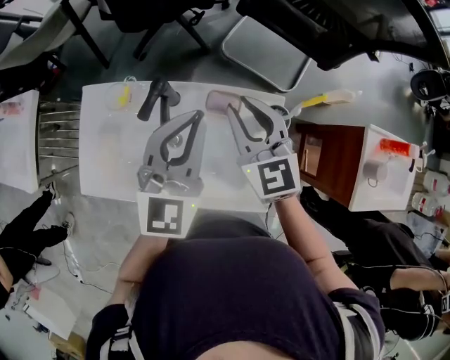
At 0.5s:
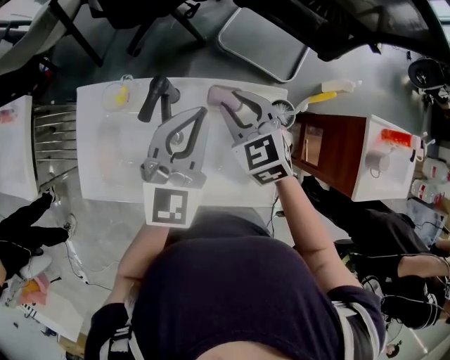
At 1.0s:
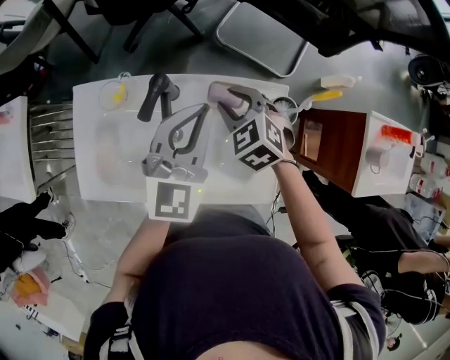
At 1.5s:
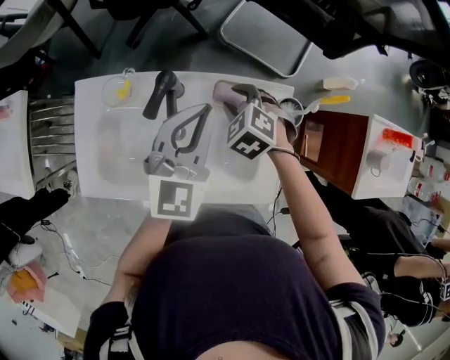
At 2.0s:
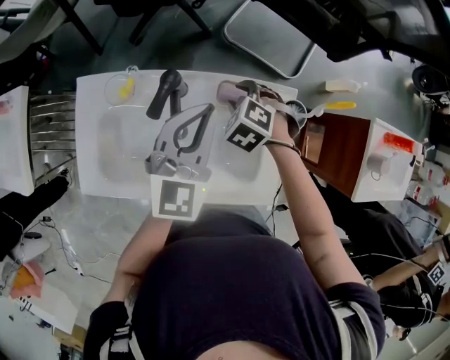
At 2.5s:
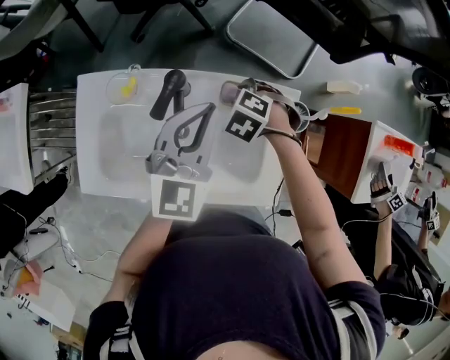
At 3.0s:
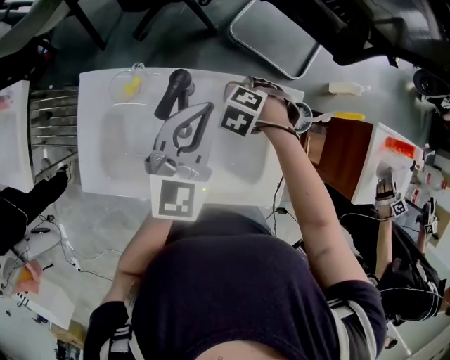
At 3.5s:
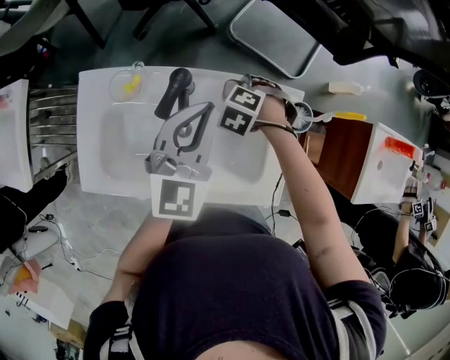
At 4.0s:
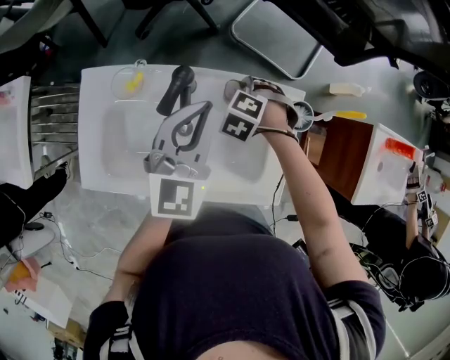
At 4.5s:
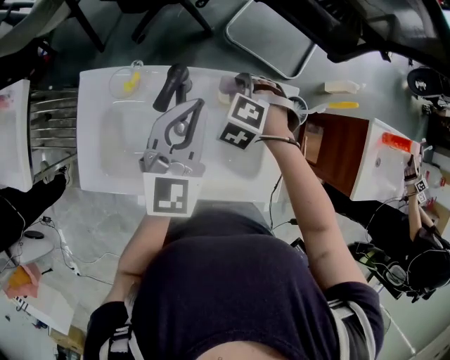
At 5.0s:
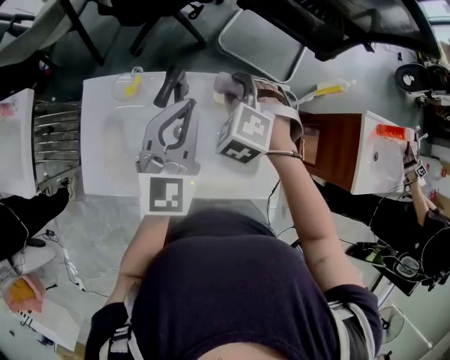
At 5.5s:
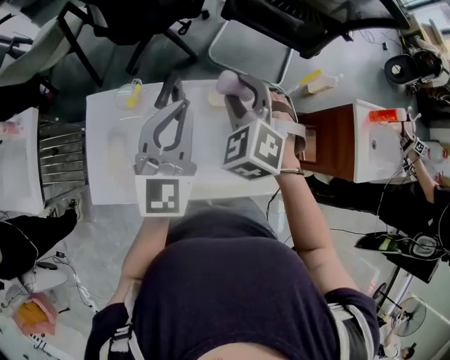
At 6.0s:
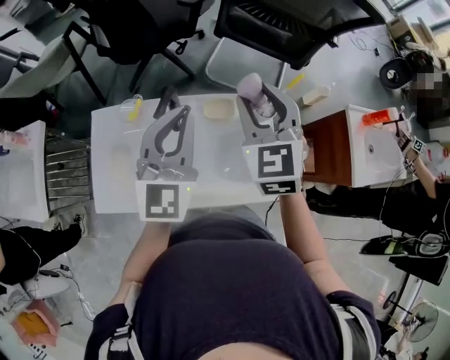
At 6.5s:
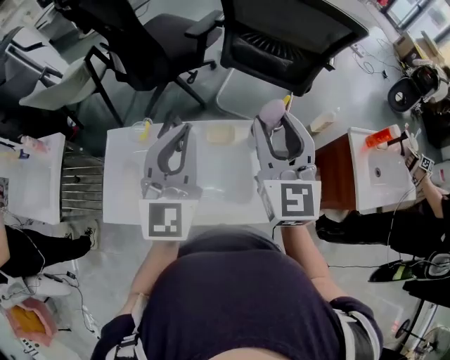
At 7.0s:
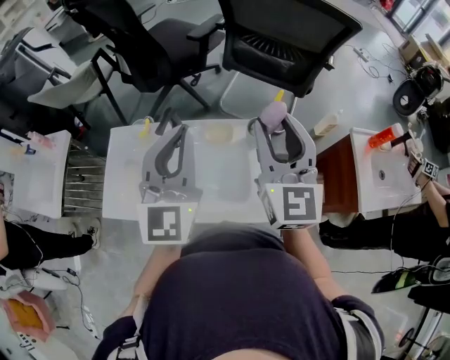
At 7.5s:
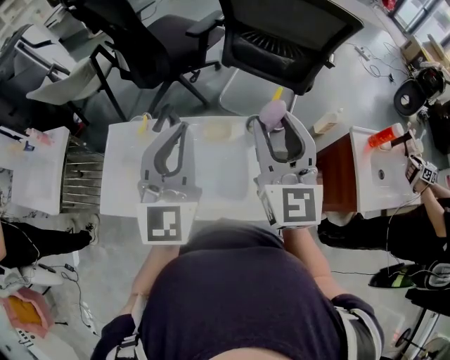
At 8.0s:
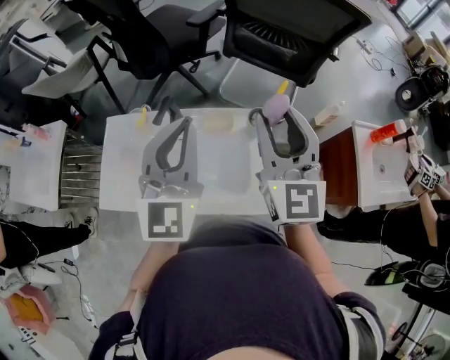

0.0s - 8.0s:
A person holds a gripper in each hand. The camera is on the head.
0.0s - 2.0s: The left gripper goes about 5 cm downward. The right gripper shifts approximately 20 cm downward, tips its fingers downward by about 50 degrees, and opens its fingers.
2.0s - 4.0s: The grippers make only small movements.
4.0s - 6.0s: The right gripper goes about 30 cm upward, and tilts its fingers about 60 degrees upward. The left gripper heads upward, covering approximately 10 cm.
6.0s - 8.0s: The left gripper is displaced upward and to the right by approximately 10 cm; the right gripper shifts approximately 10 cm to the right, upward and backward, and rotates some 30 degrees.

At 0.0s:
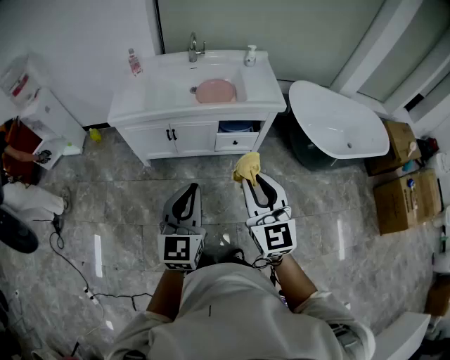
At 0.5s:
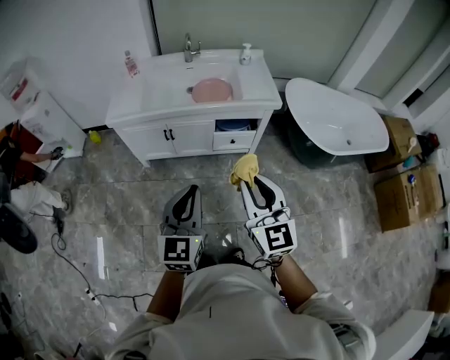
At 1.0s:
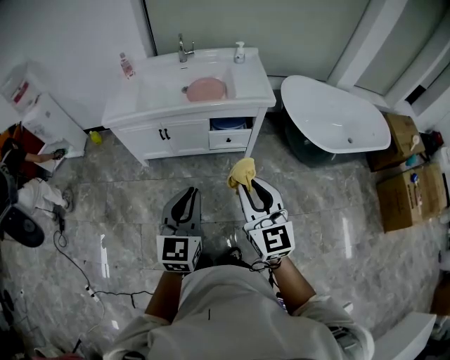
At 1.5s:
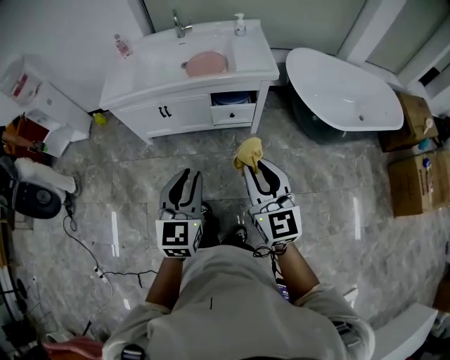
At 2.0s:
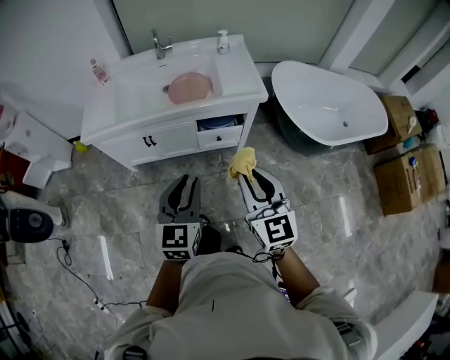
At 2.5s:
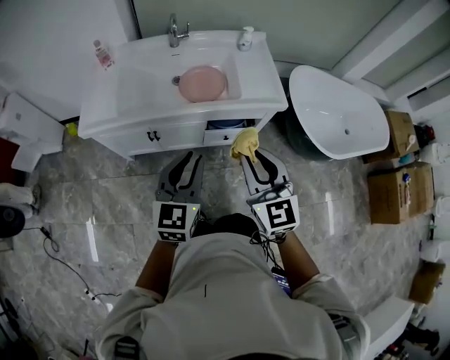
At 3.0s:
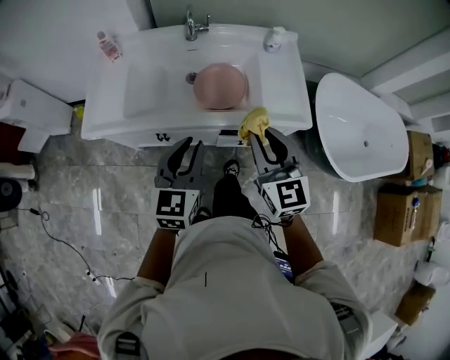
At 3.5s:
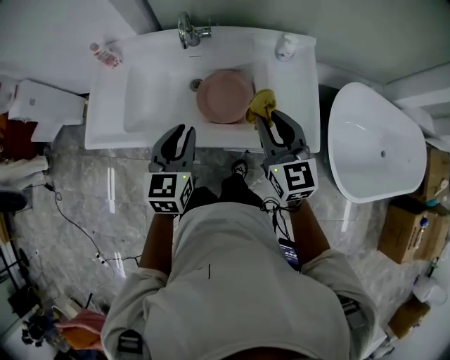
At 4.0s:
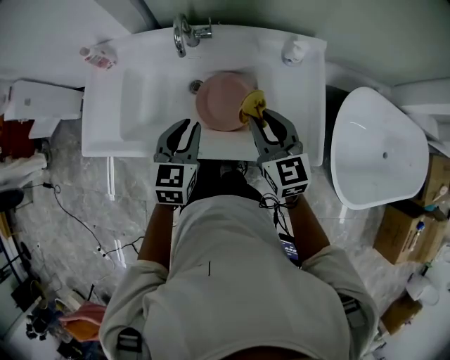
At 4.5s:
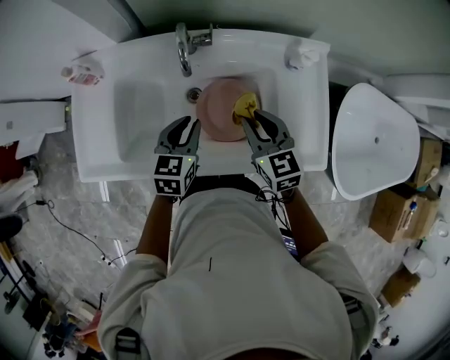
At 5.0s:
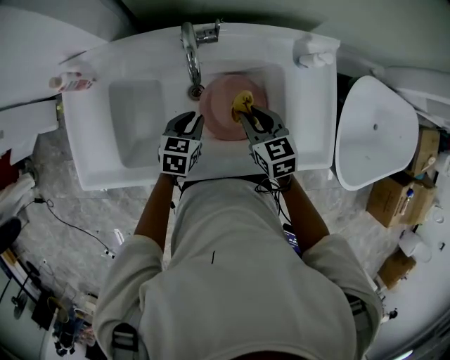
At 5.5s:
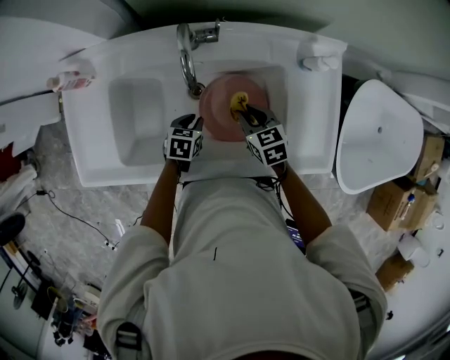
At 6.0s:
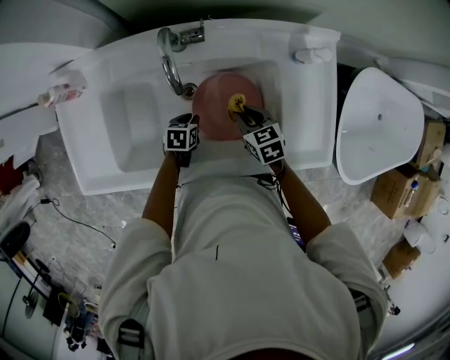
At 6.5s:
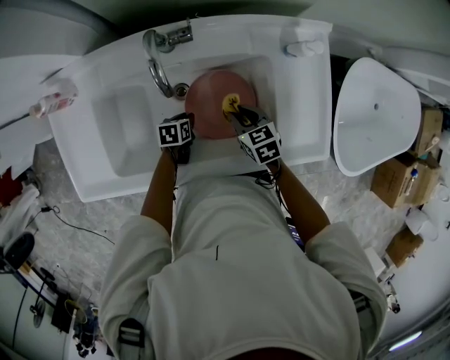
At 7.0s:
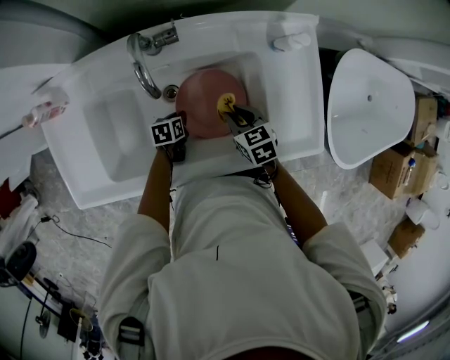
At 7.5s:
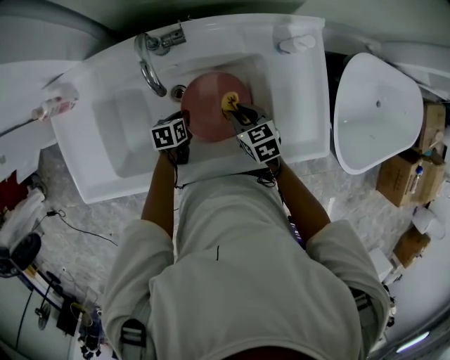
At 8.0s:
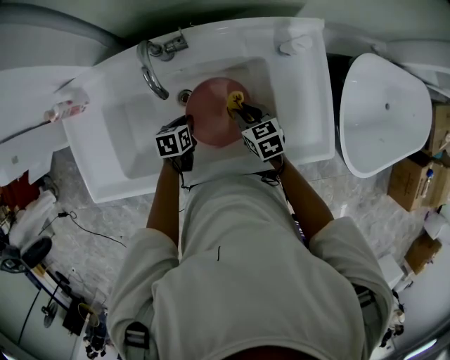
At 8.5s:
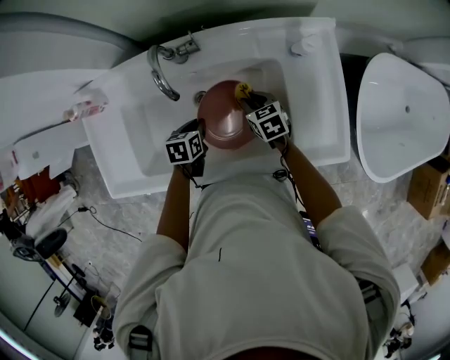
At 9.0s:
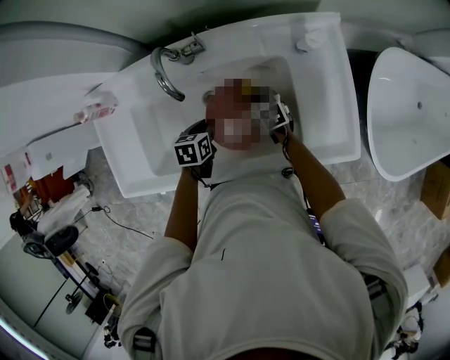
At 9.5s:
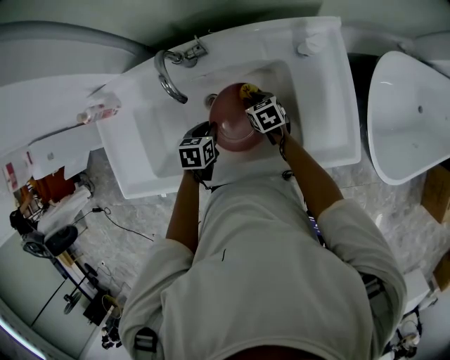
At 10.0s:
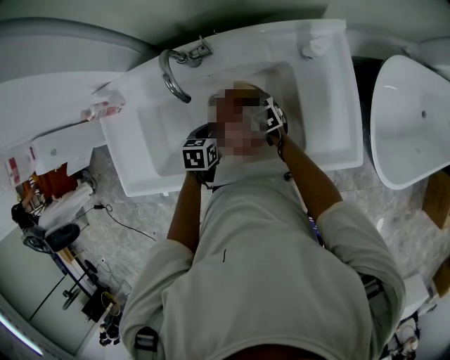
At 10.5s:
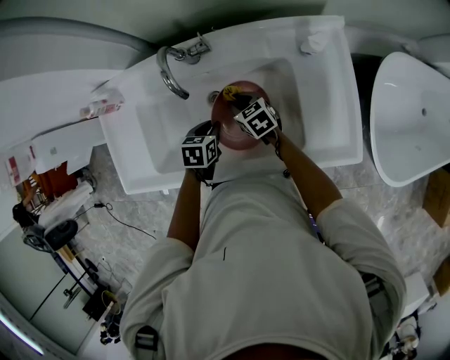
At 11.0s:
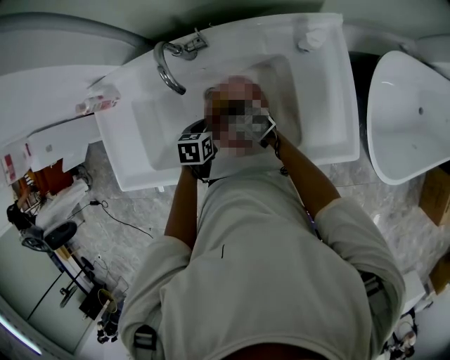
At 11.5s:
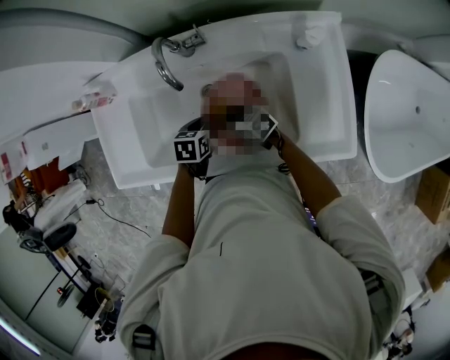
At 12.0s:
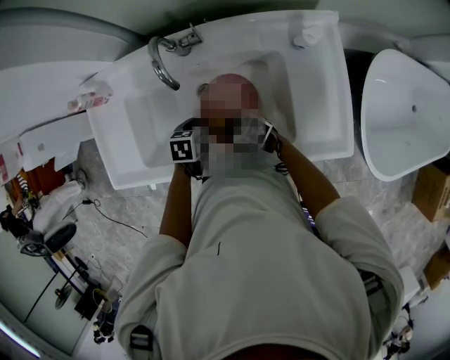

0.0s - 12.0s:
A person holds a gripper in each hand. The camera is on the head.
0.0s - 2.0s: The right gripper travels to the right, forward and downward by roughly 15 cm. The left gripper goes some 15 cm forward, to the right and downward.
2.0s - 4.0s: The pair of grippers is taken forward, approximately 50 cm. The right gripper changes its angle by roughly 20 degrees.
4.0s - 6.0s: The grippers both shift downward by about 30 cm. The left gripper tilts its fingers about 30 degrees downward; the right gripper angles its fingers downward, by approximately 30 degrees.
6.0s - 8.0s: The left gripper shifts roughly 5 cm upward.
8.0s - 10.0s: The left gripper shifts roughly 5 cm upward, while the right gripper goes some 10 cm forward, to the left and downward.
10.0s - 12.0s: The right gripper moves some 15 cm, and changes its angle by approximately 40 degrees.

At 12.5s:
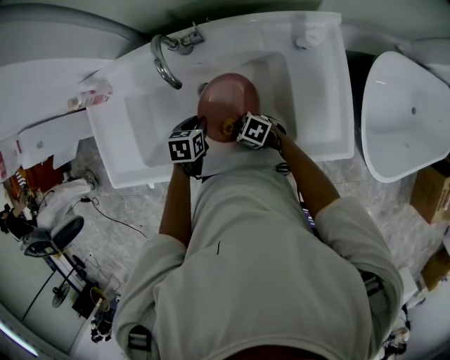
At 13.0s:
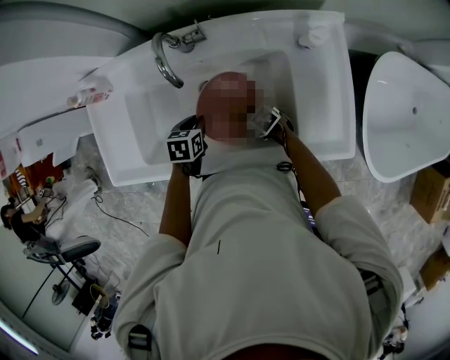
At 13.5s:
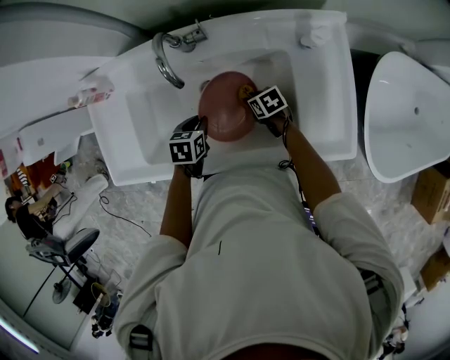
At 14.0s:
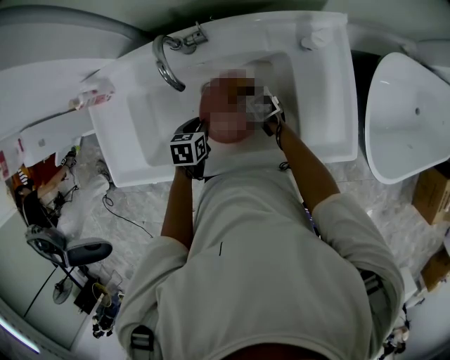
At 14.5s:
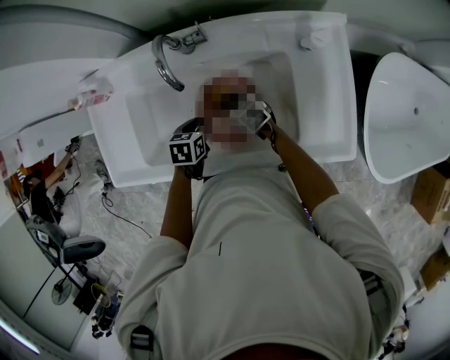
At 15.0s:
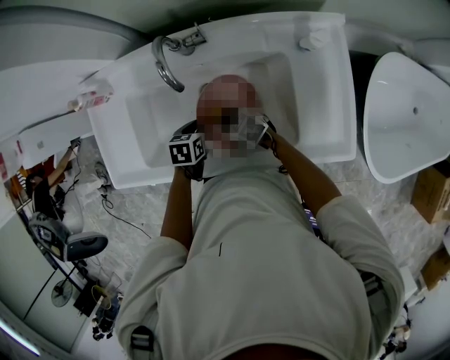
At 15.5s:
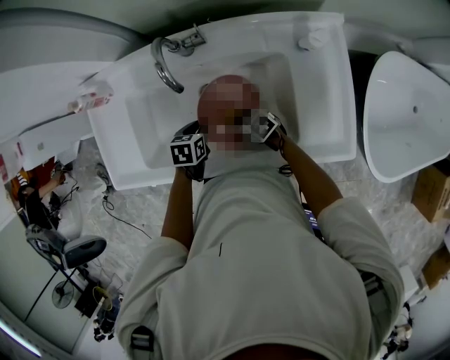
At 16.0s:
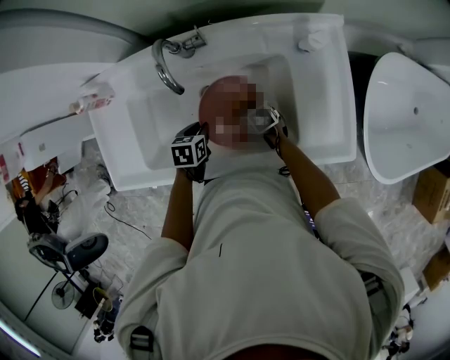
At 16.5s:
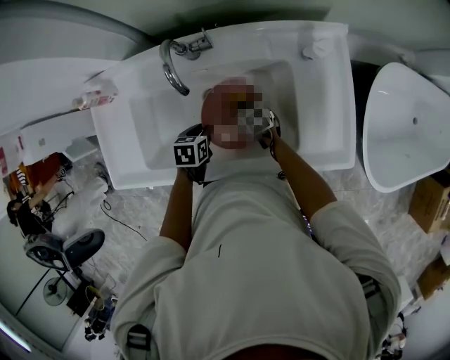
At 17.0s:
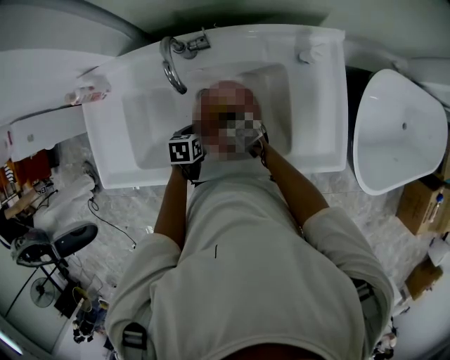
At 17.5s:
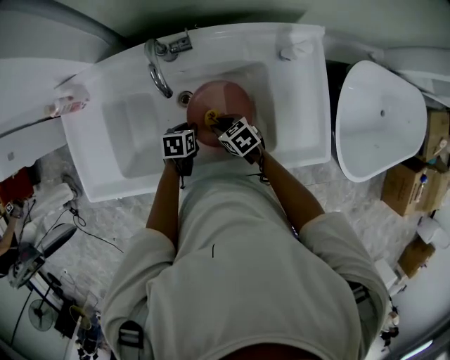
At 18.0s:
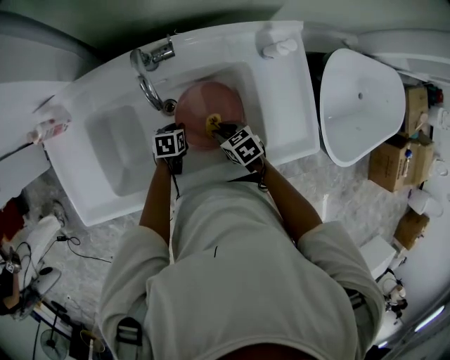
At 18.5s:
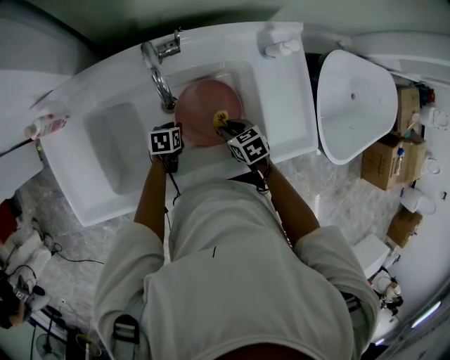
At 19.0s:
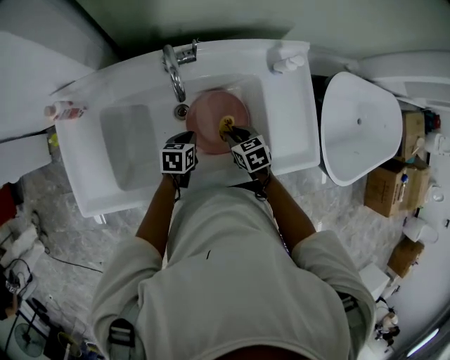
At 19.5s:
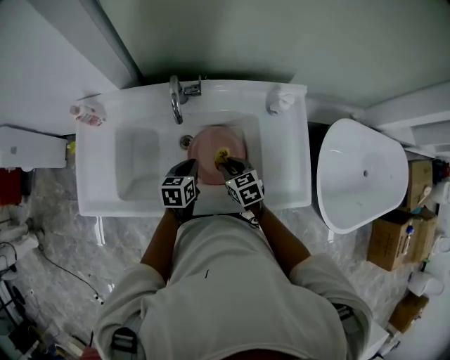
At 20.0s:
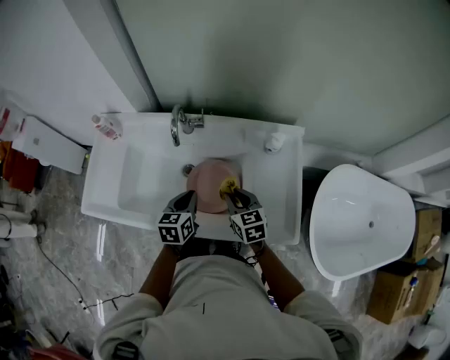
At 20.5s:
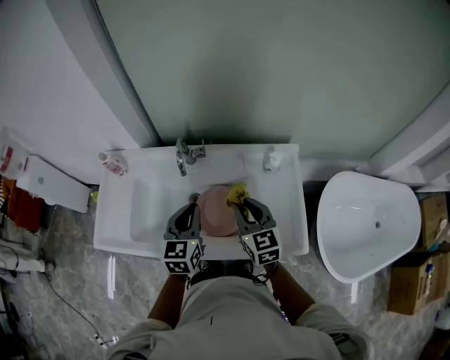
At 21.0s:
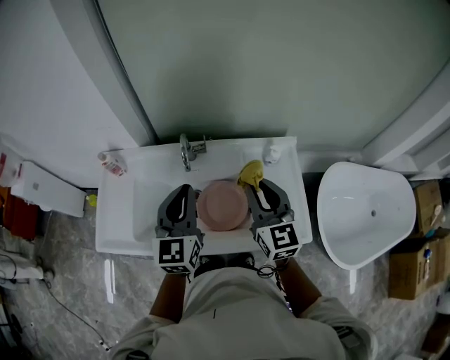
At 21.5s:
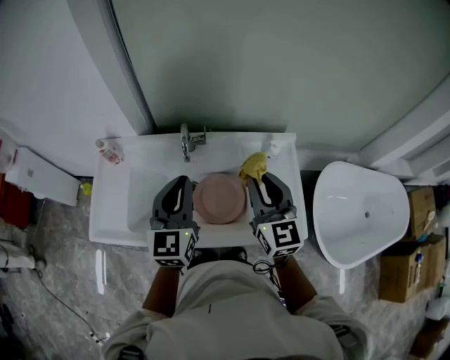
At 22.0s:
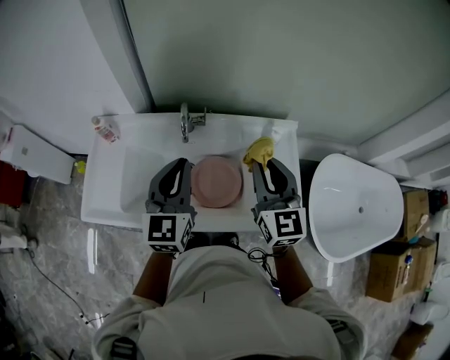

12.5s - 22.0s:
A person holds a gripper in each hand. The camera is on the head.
12.5s - 14.5s: The right gripper shifts by about 10 cm, and turns by approximately 30 degrees.
16.5s - 18.0s: The left gripper travels downward by about 10 cm. Meanwhile the right gripper shifts roughly 5 cm backward.
18.0s - 20.0s: The left gripper heads upward, covering approximately 25 cm, and rotates roughly 40 degrees, while the right gripper heads upward and to the right, covering some 20 cm, and turns by some 30 degrees.
20.0s - 22.0s: Both grippers travel together upward, roughly 25 cm. The left gripper rotates some 30 degrees. The right gripper turns by some 30 degrees.
